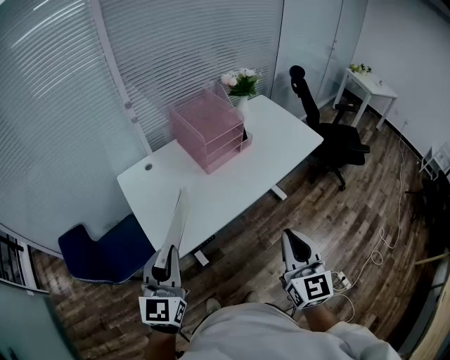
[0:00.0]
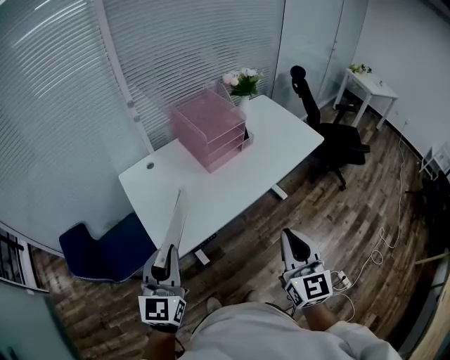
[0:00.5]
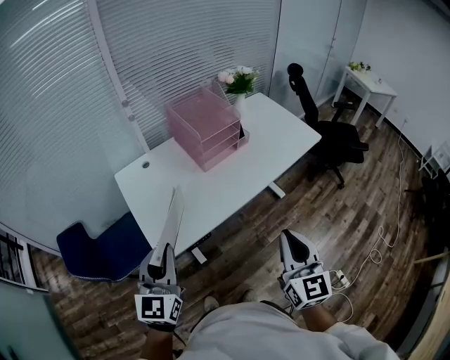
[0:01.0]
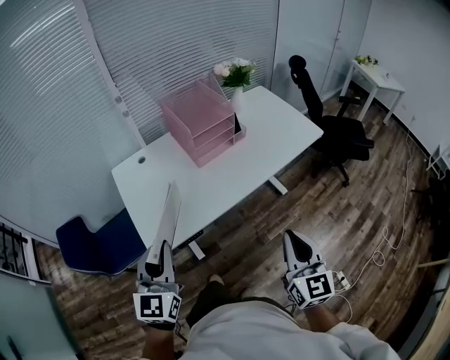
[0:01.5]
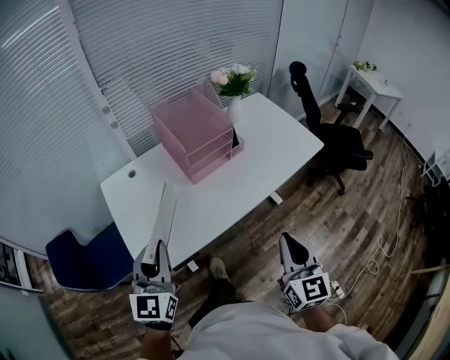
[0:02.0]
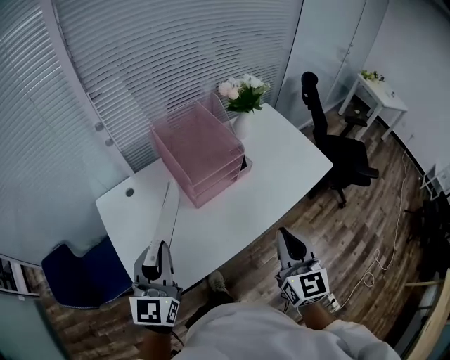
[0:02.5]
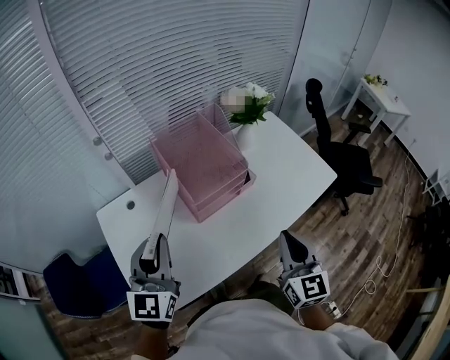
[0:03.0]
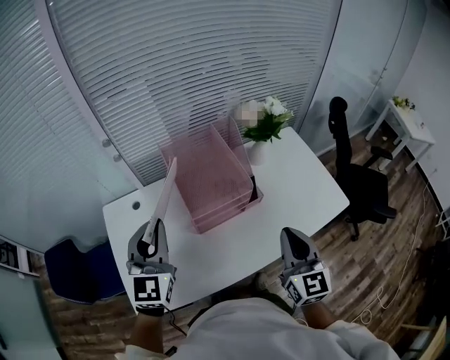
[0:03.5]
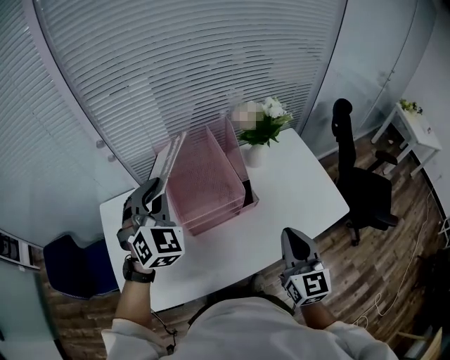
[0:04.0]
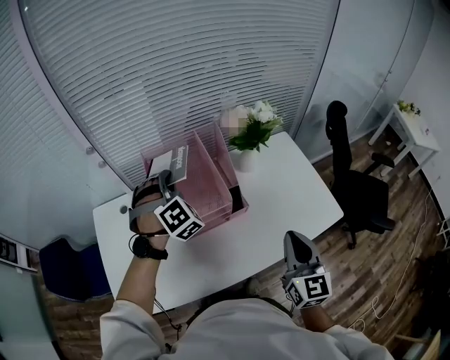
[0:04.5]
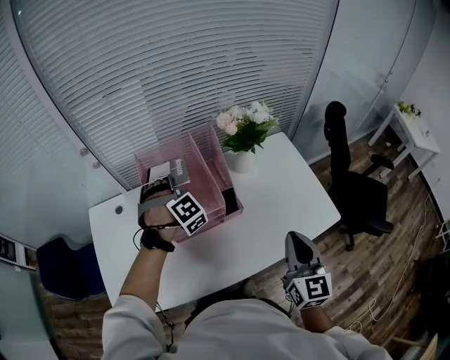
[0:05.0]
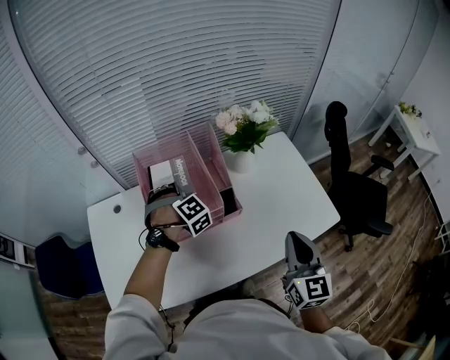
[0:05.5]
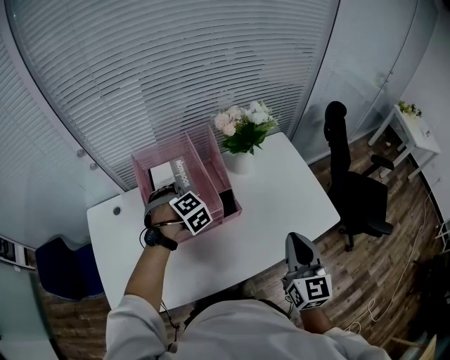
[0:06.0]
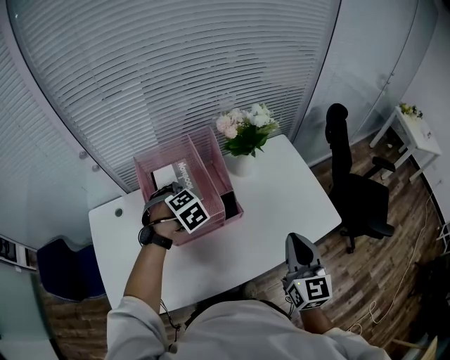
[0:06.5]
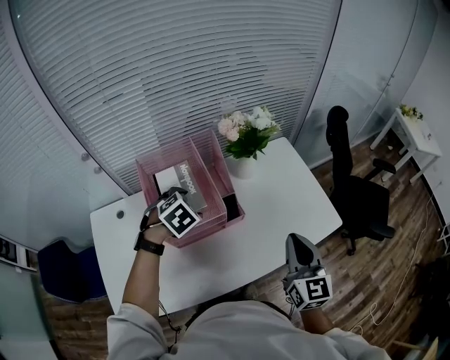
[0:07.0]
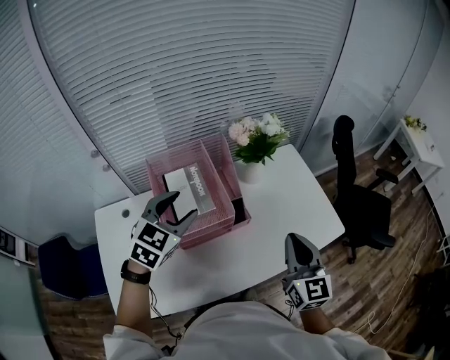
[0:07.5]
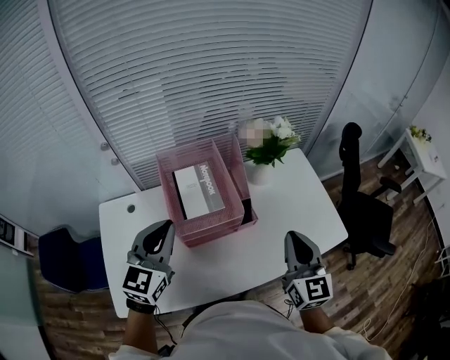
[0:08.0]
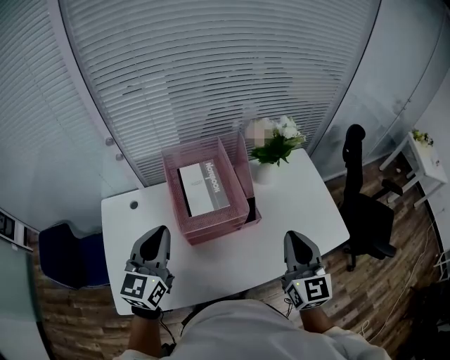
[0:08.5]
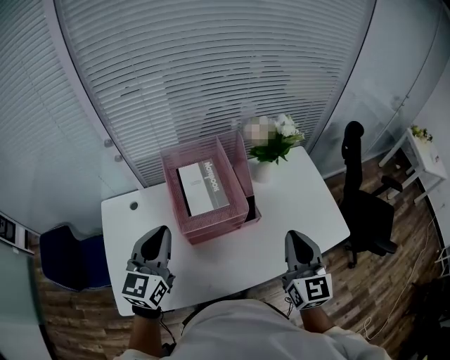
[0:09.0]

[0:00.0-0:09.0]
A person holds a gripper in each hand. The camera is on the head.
0:00.0 to 0:02.0: The left gripper is displaced forward by approximately 10 cm. The right gripper travels forward and to the right by roughly 10 cm.
0:02.0 to 0:04.5: The right gripper moves forward and to the right, approximately 35 cm. Meanwhile the left gripper is displaced forward by about 50 cm, and rotates roughly 80 degrees.
0:04.5 to 0:07.0: The left gripper moves downward, approximately 10 cm, tips its fingers downward by some 40 degrees, and opens.
0:07.0 to 0:09.0: The right gripper is displaced to the left by some 10 cm, while the left gripper travels upward, backward and to the left by approximately 20 cm, points its fingers some 60 degrees further upward, and closes.

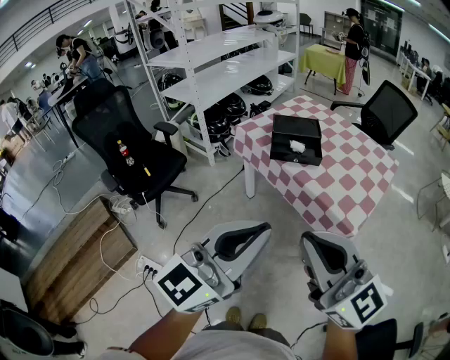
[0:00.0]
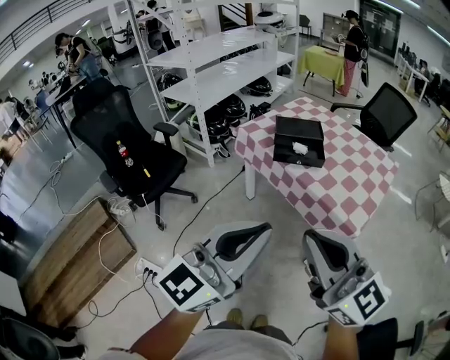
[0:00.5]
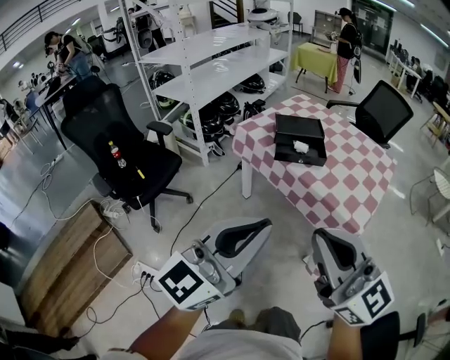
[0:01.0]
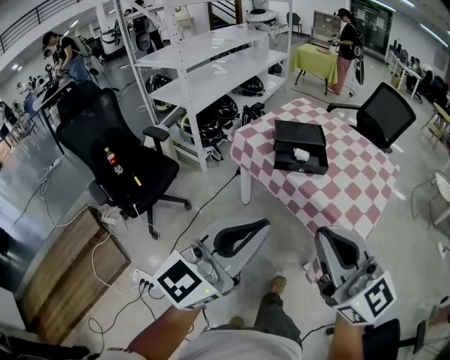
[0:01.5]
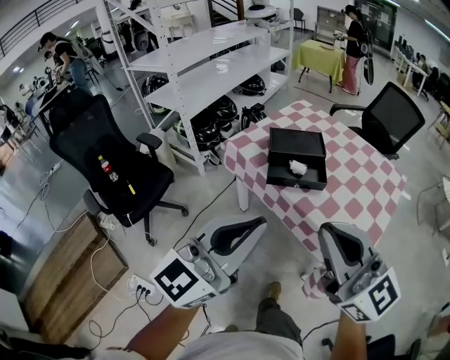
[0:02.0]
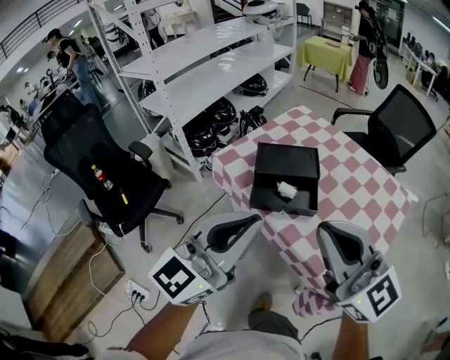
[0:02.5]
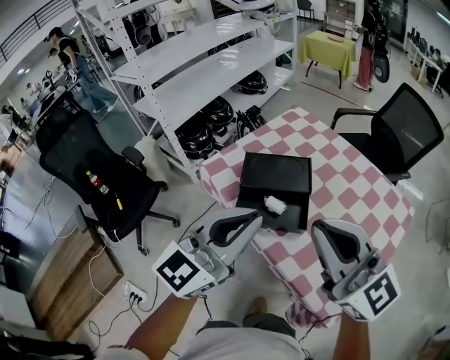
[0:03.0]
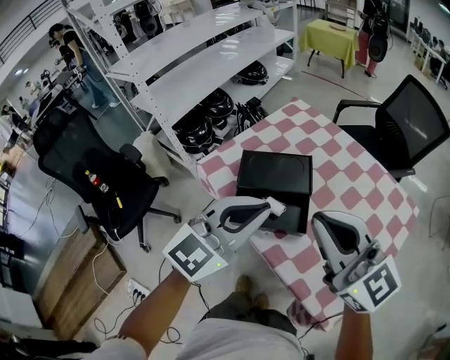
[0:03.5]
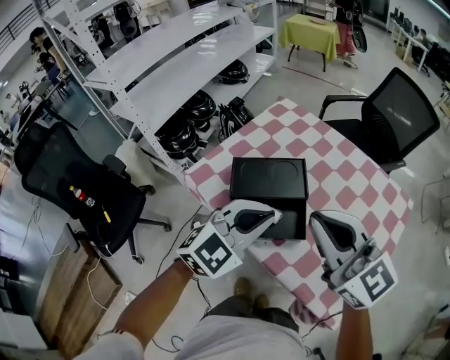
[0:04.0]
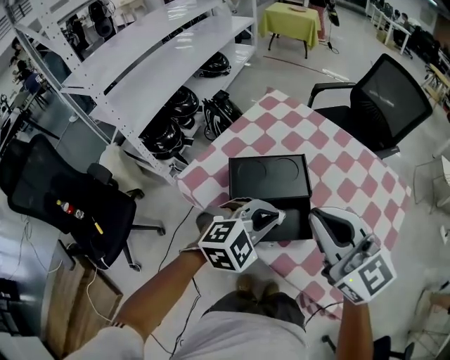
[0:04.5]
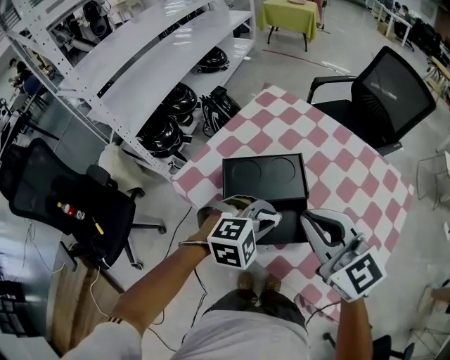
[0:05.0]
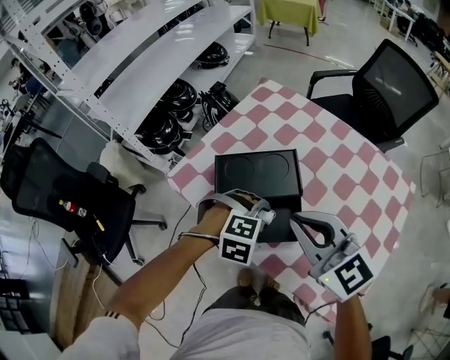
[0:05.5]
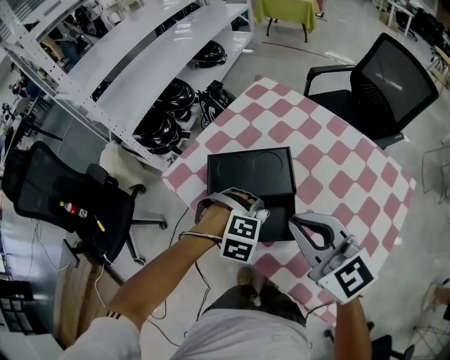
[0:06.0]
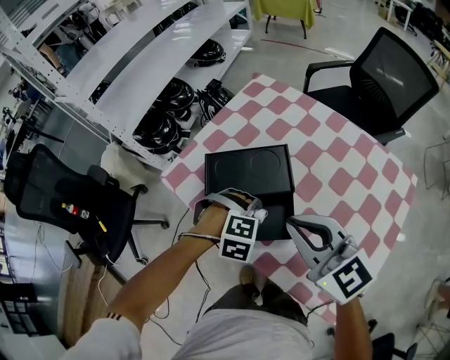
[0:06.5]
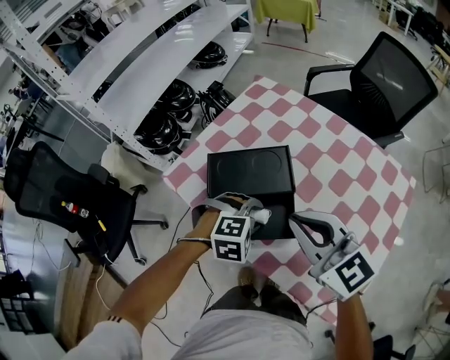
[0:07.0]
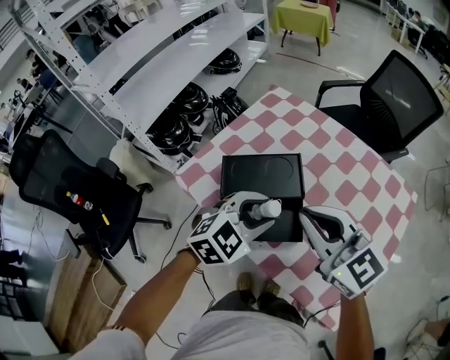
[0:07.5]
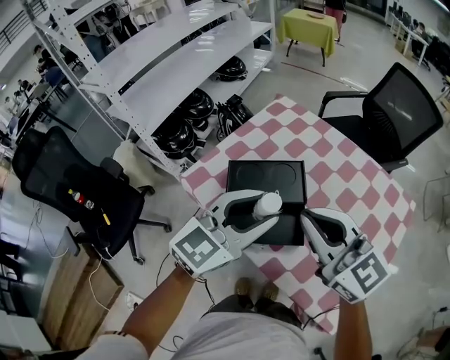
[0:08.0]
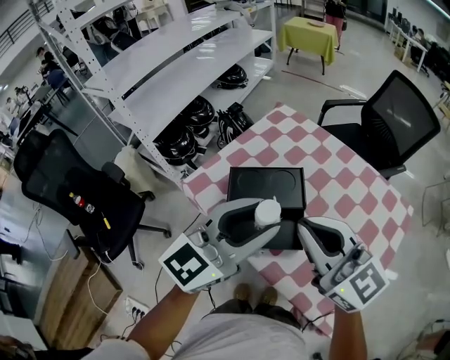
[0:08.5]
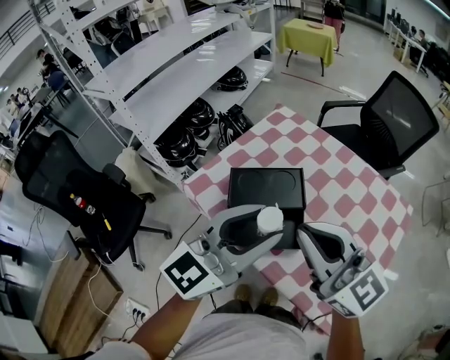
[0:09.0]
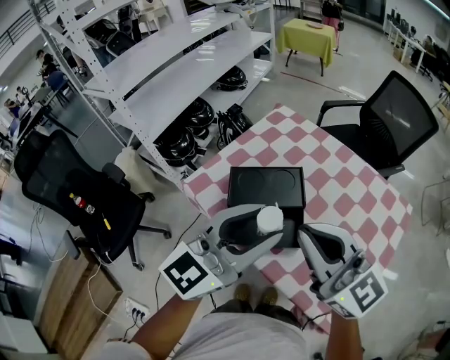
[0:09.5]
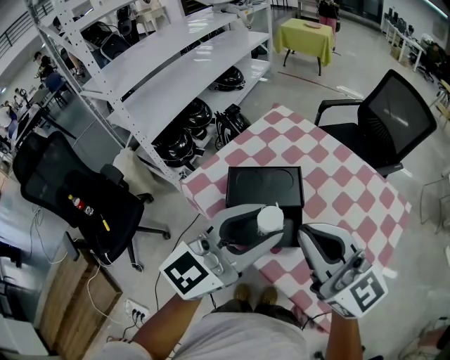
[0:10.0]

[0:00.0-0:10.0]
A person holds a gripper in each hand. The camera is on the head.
0:00.0 to 0:02.0: The grippers both shift forward by about 20 cm.
0:02.0 to 0:04.0: The left gripper is displaced forward, to the right and downward by some 40 cm, and tips its fingers downward by roughly 30 degrees; the right gripper travels forward by about 30 cm.
0:04.0 to 0:06.0: The left gripper heads downward, covering some 20 cm, tilts its fingers roughly 50 degrees downward, and opens, while the right gripper travels downward by about 10 cm.
0:06.0 to 0:08.0: The right gripper goes some 5 cm upward, while the left gripper shifts roughly 25 cm upward, and angles its fingers upward, by approximately 60 degrees.
0:08.0 to 0:10.0: The right gripper changes place by some 5 cm. The left gripper is displaced upward by some 5 cm.

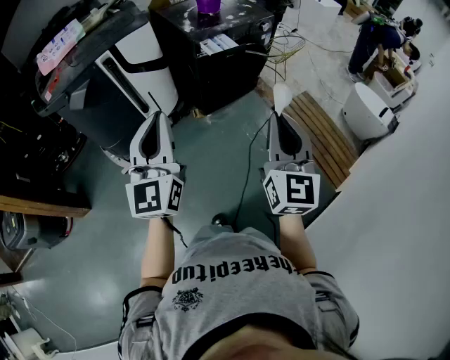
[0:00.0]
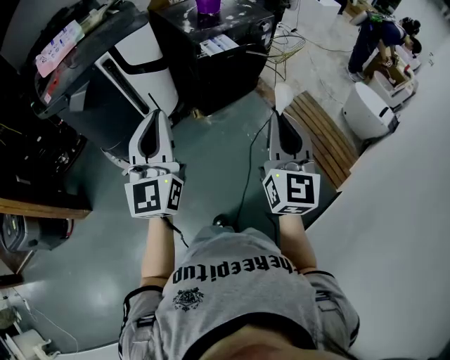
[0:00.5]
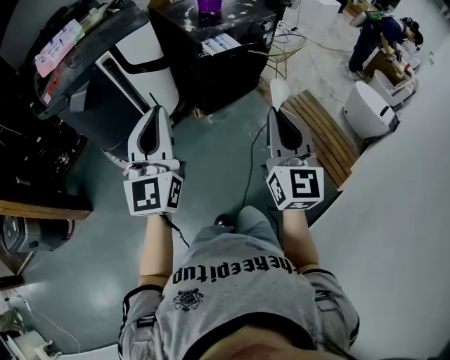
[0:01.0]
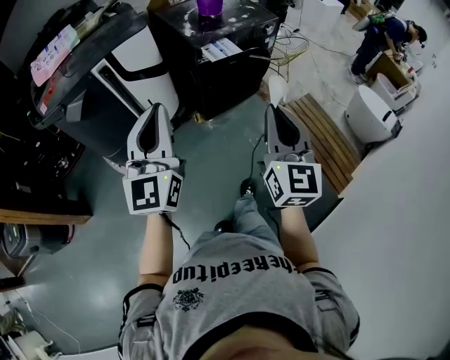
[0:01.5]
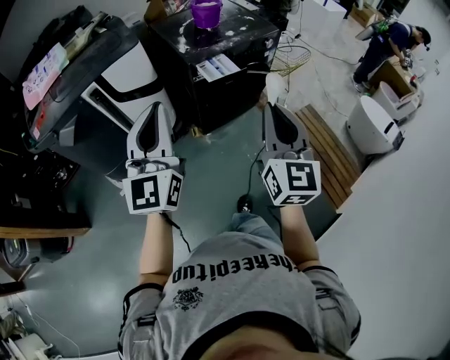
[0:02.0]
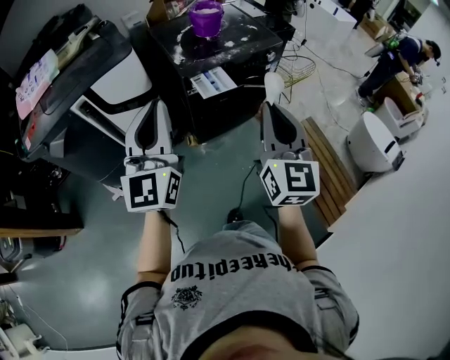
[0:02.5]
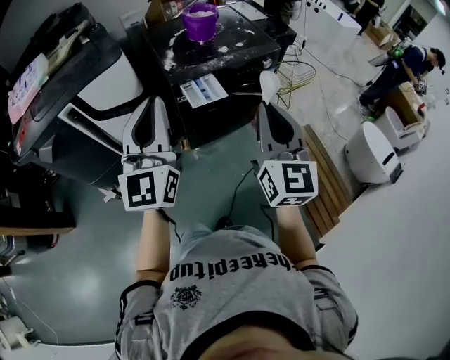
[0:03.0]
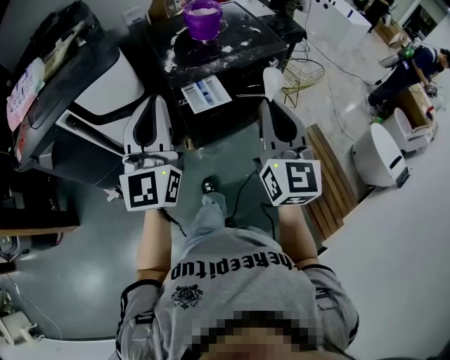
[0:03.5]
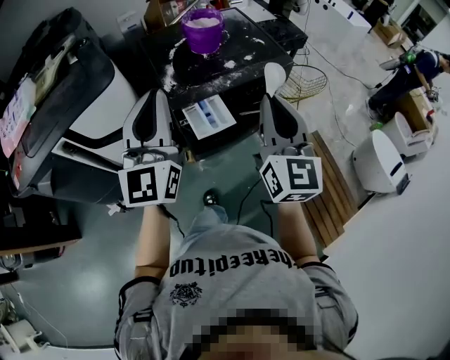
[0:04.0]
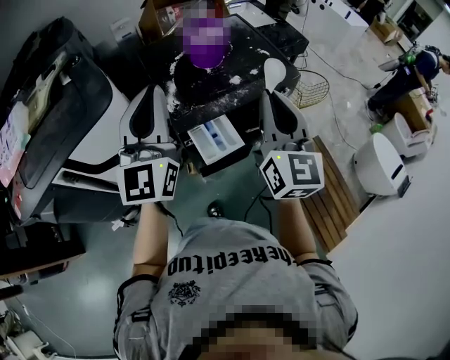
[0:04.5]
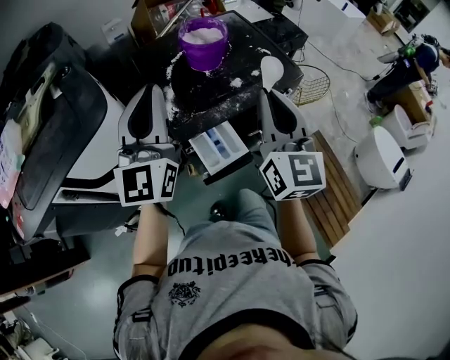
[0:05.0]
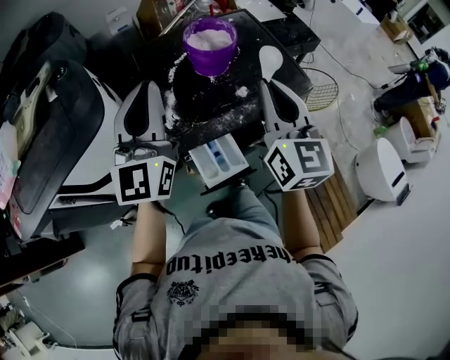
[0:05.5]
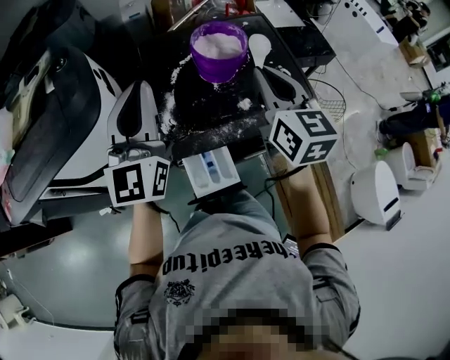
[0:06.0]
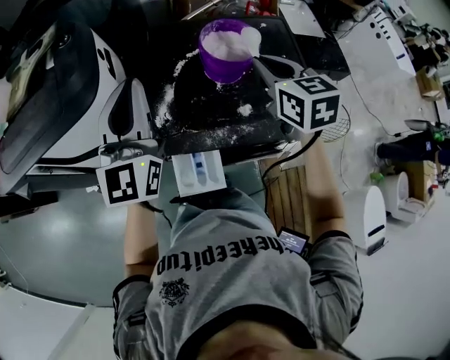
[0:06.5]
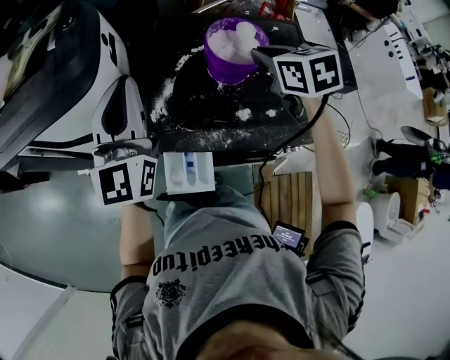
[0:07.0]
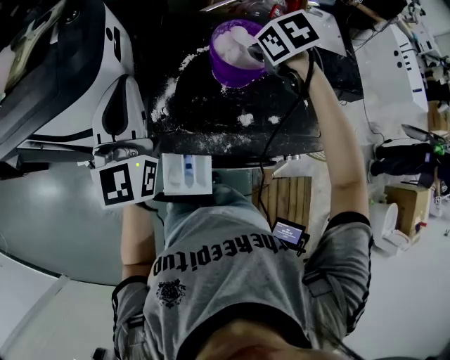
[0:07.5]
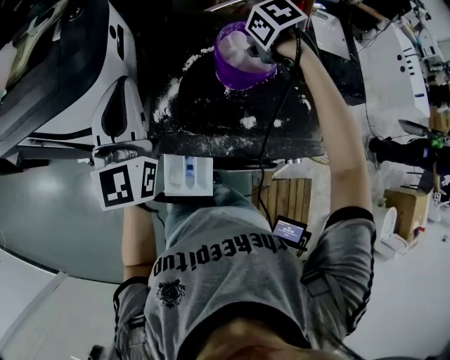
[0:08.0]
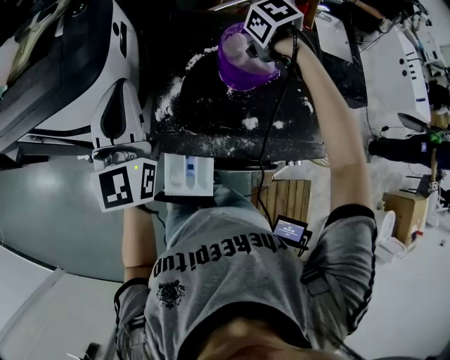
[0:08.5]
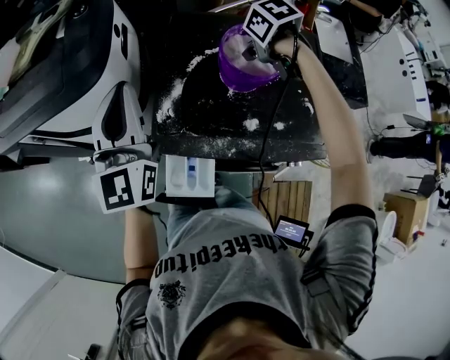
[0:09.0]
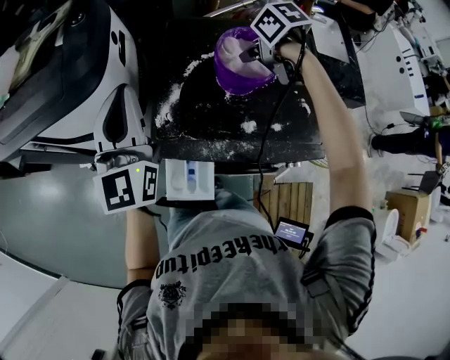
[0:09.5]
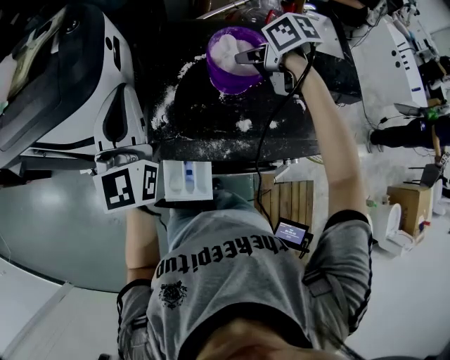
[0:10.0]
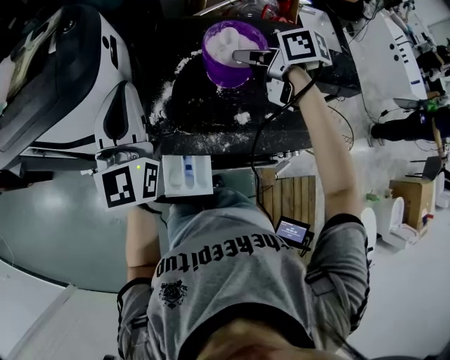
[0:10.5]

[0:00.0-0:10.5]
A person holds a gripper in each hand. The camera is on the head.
0:00.0 to 0:02.0: Both grippers move forward, about 20 cm.
0:02.0 to 0:04.0: The two grippers go approximately 30 cm forward.
0:04.0 to 0:06.5: The right gripper changes place by roughly 40 cm, and tips its fingers downward by roughly 30 degrees; the left gripper changes place by roughly 30 cm, and turns by approximately 20 degrees.
0:06.5 to 0:08.5: The right gripper goes about 15 cm downward, and tips its fingers downward by roughly 50 degrees.
0:08.5 to 0:10.5: The right gripper goes approximately 5 cm upward, and tips its fingers upward by roughly 40 degrees.
